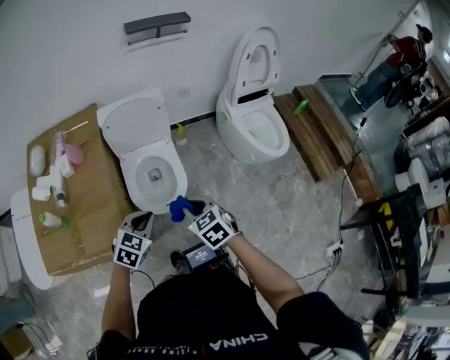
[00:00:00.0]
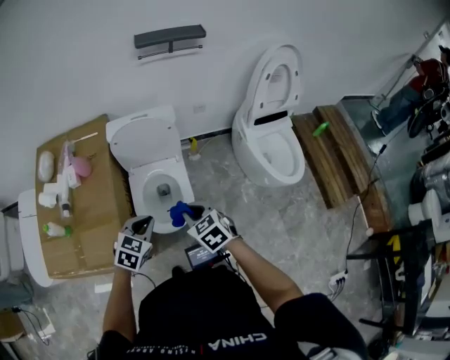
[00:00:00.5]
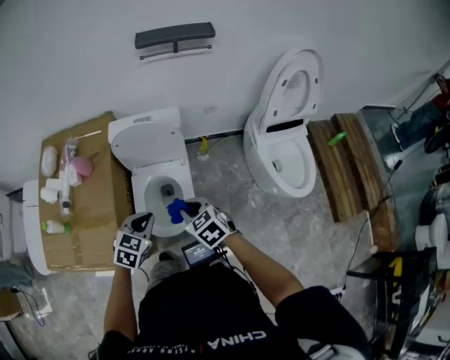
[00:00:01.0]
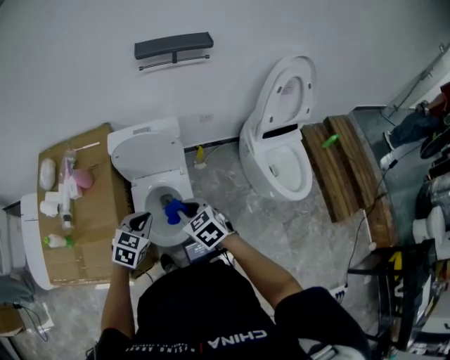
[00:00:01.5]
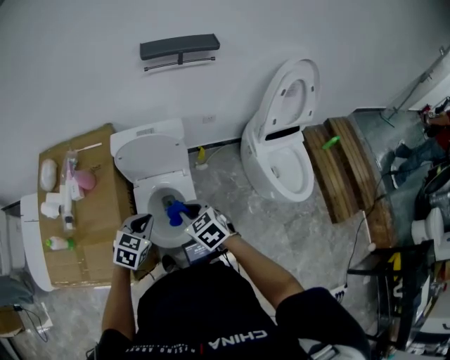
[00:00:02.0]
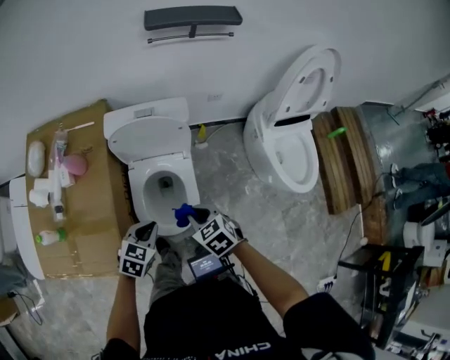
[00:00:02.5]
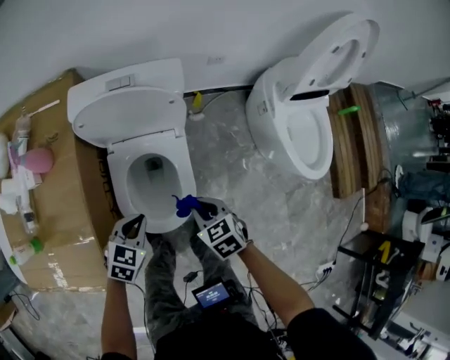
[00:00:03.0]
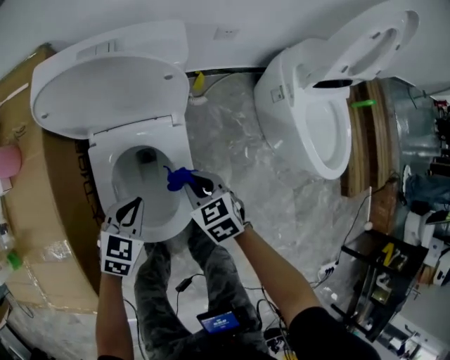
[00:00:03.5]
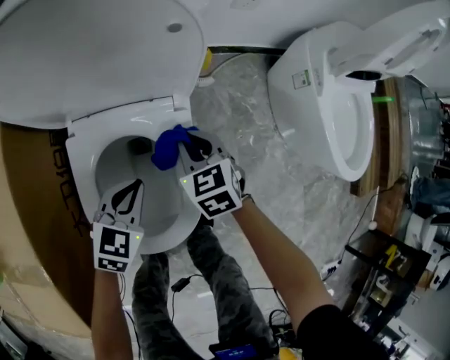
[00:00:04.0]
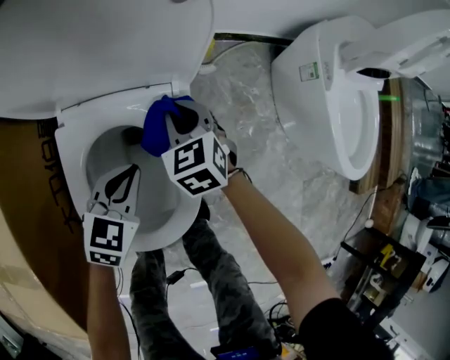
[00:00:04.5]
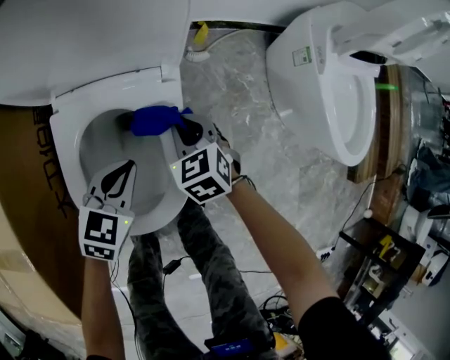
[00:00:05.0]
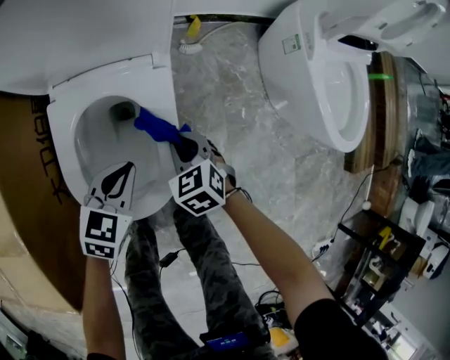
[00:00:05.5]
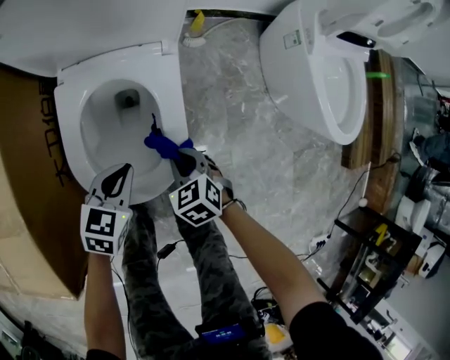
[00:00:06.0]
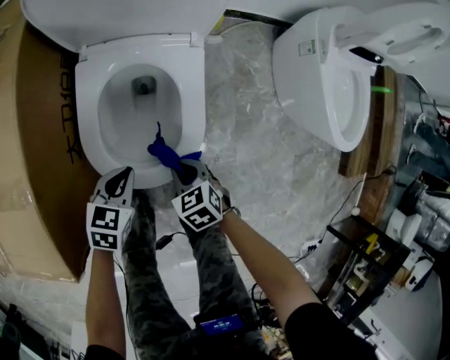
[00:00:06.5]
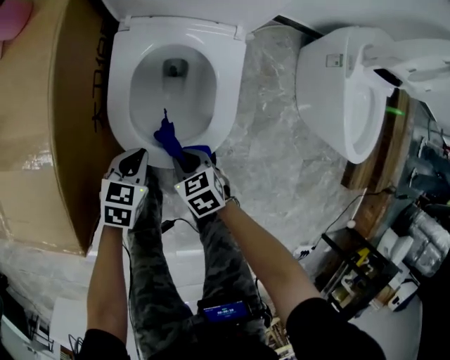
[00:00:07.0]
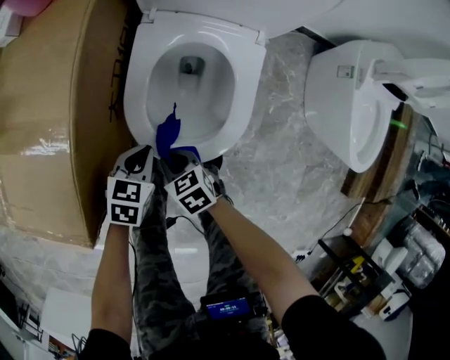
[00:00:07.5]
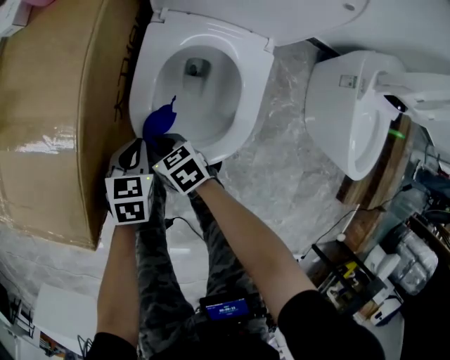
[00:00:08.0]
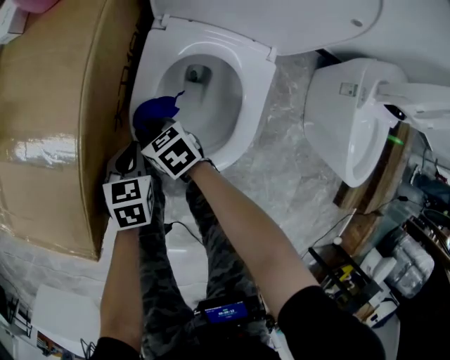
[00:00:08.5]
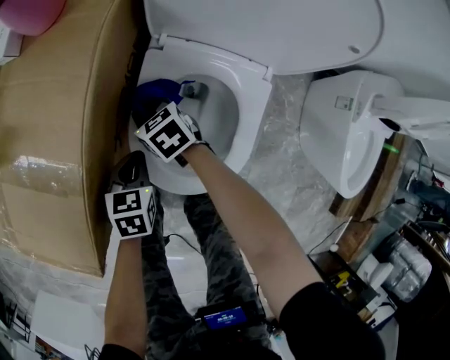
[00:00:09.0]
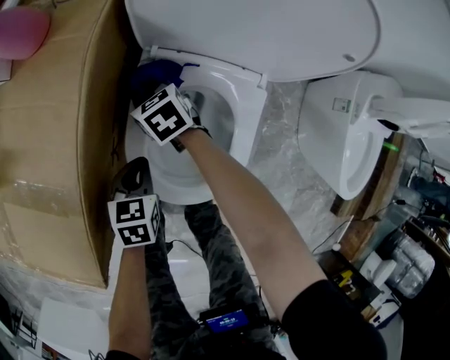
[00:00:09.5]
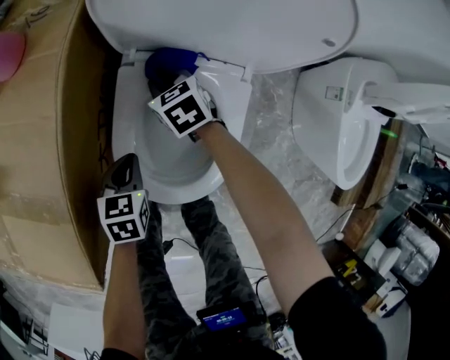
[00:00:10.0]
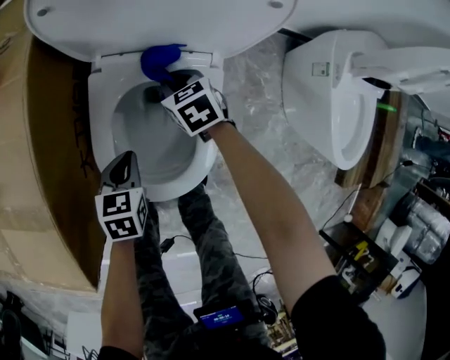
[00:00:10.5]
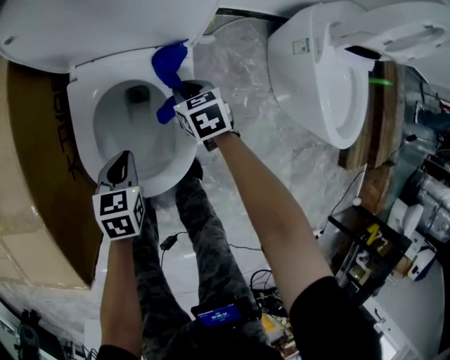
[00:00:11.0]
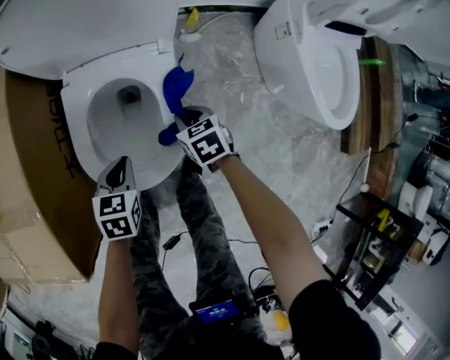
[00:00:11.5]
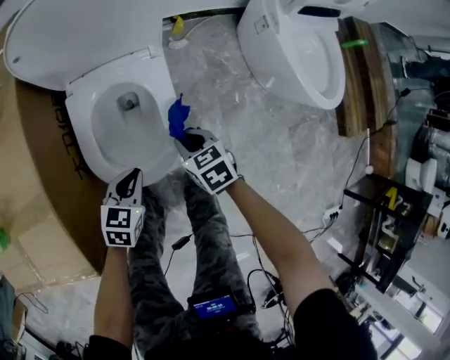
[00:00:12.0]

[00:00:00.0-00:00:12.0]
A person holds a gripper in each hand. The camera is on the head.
00:00:00.0 to 00:00:02.0: Both grippers travel together forward, about 20 cm.
00:00:02.0 to 00:00:04.0: The right gripper moves downward and forward, about 50 cm. The left gripper goes some 40 cm downward.
00:00:04.0 to 00:00:06.0: The right gripper moves backward, roughly 20 cm, while the left gripper goes roughly 10 cm backward.
00:00:06.0 to 00:00:08.0: The right gripper shifts by some 25 cm, and turns by some 30 degrees. Meanwhile the left gripper moves some 15 cm, and swivels about 30 degrees.
00:00:08.0 to 00:00:10.0: The right gripper shifts roughly 30 cm forward and to the right, and turns by some 20 degrees. The left gripper travels forward and to the right by about 10 cm.
00:00:10.0 to 00:00:12.0: The left gripper ends up roughly 15 cm from where it was, and changes its angle by some 40 degrees, while the right gripper ends up about 35 cm from where it was, and swivels about 30 degrees.

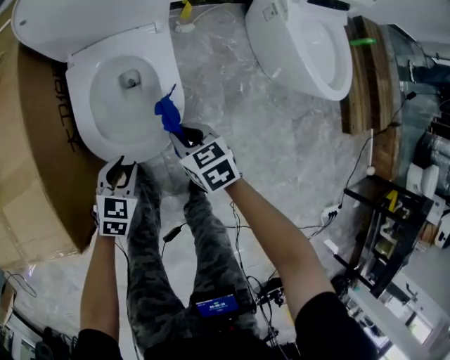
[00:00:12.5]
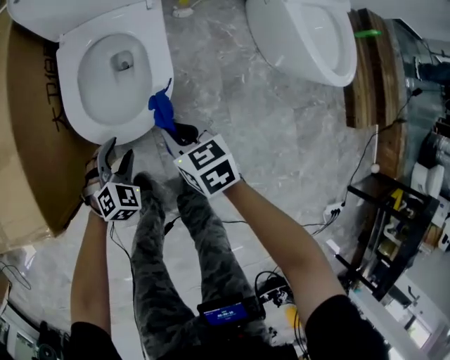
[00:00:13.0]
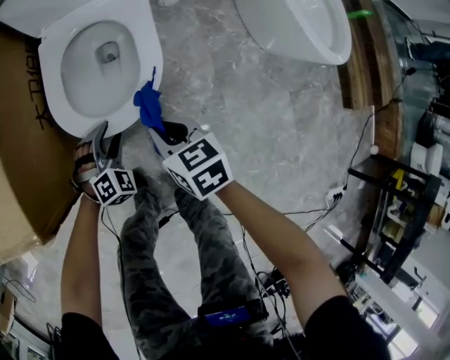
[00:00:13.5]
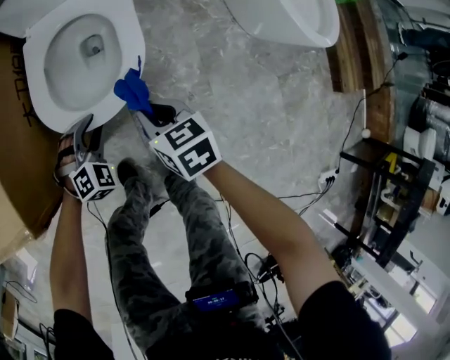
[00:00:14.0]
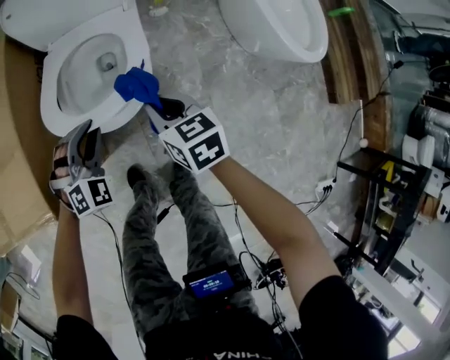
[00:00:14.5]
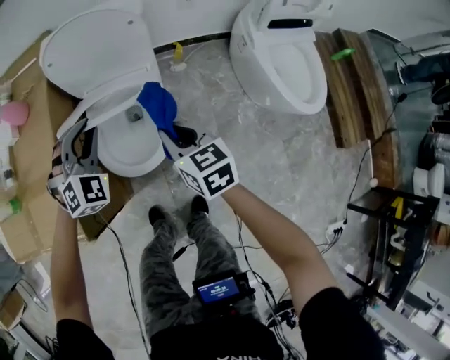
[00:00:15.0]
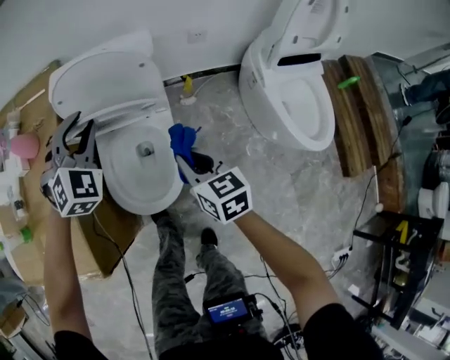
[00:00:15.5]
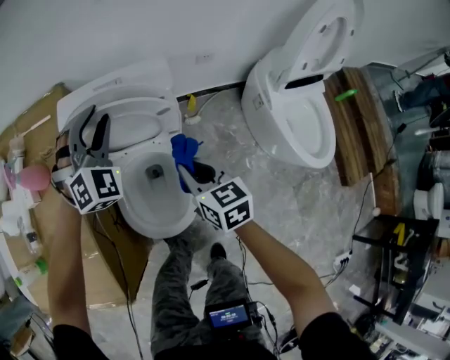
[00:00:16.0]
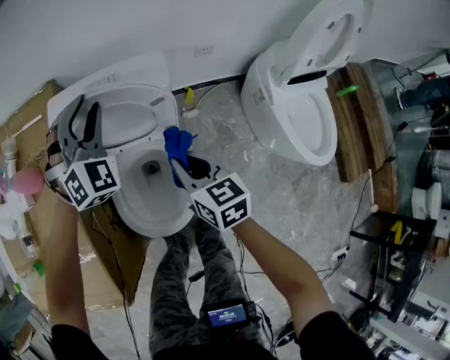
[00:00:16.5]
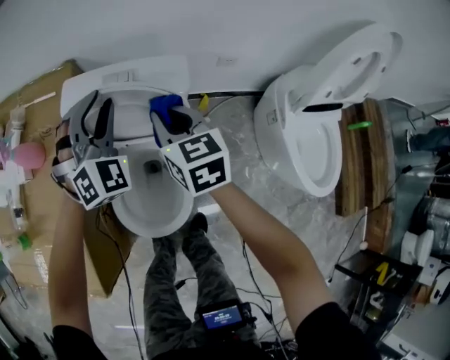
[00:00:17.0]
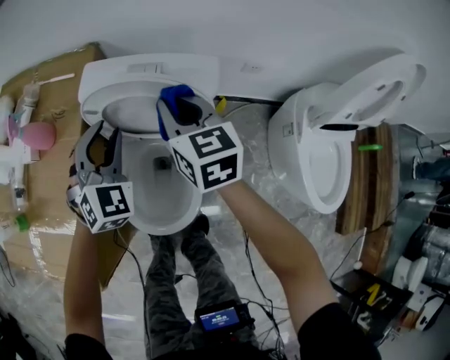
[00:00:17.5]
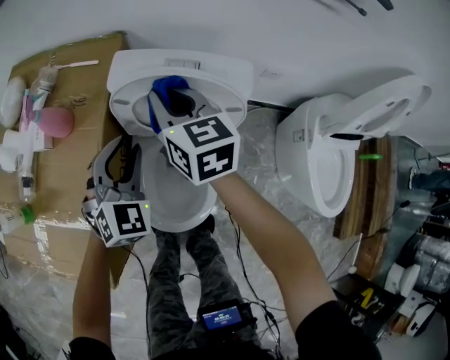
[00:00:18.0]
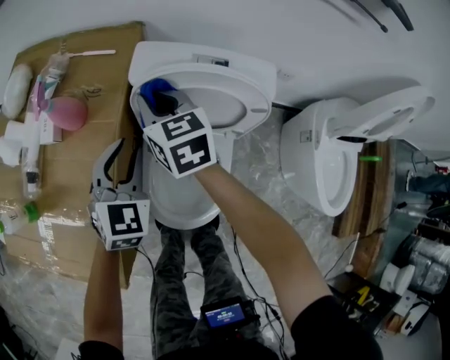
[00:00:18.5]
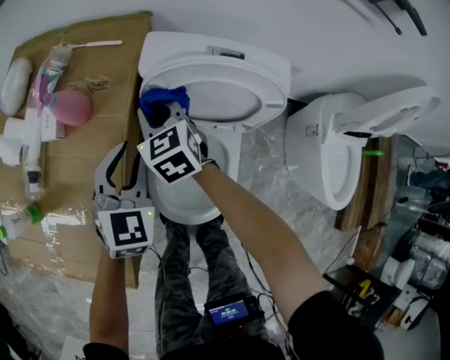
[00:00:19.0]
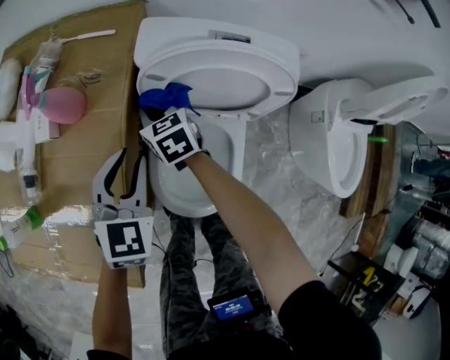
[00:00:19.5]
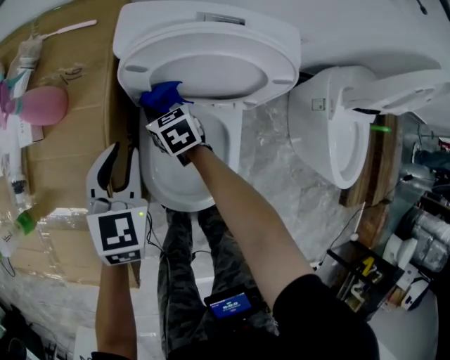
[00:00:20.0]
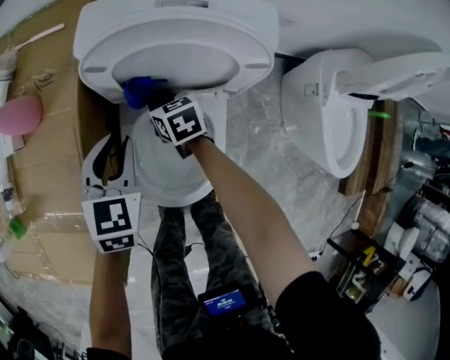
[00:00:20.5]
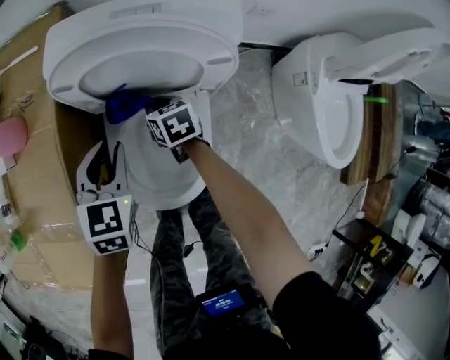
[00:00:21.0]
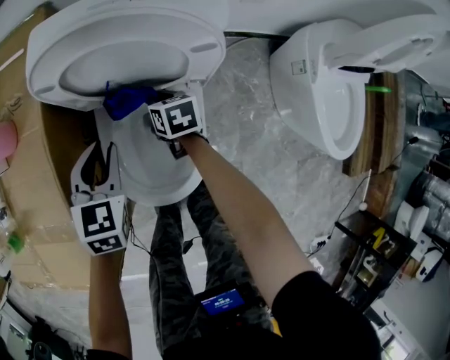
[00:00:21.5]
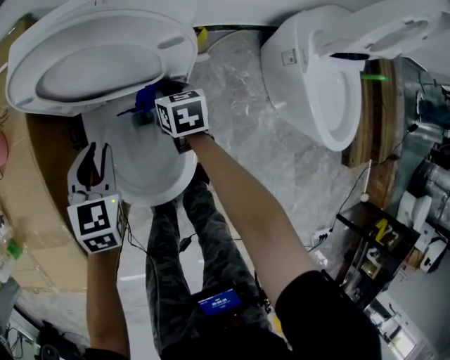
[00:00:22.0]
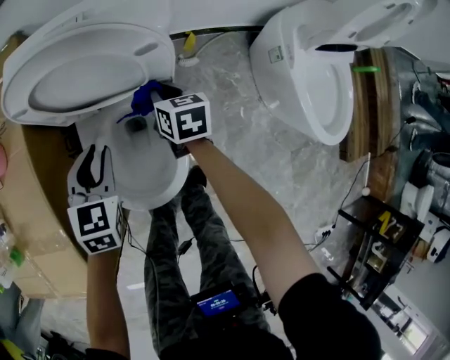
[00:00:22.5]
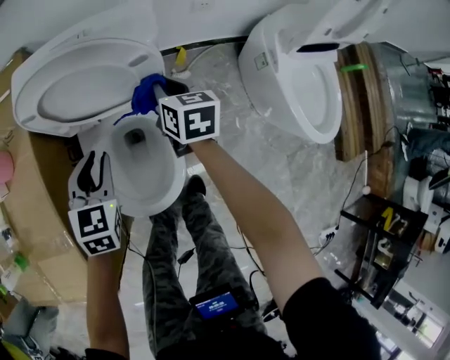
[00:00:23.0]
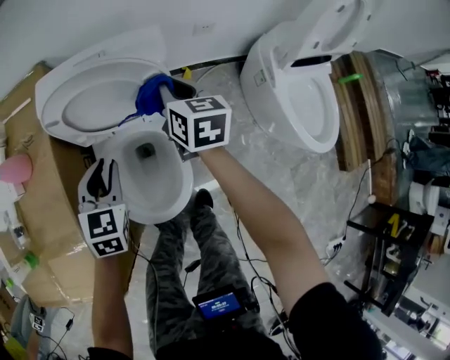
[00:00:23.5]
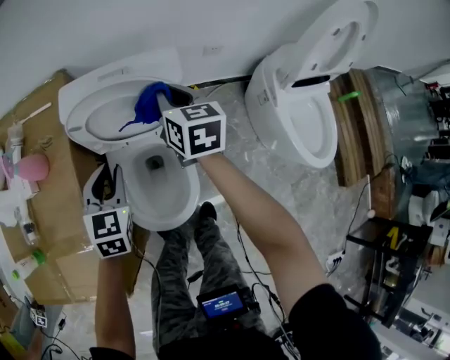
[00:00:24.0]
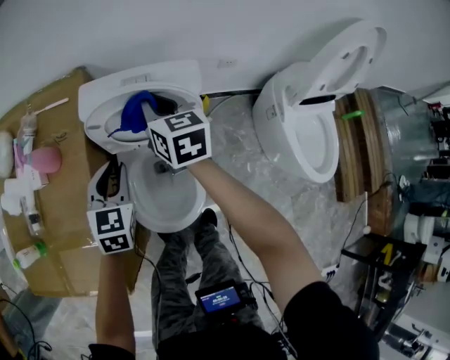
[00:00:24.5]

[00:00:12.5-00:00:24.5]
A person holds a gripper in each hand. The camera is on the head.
00:00:12.5 to 00:00:14.5: The right gripper travels upward and backward by some 10 cm; the left gripper heads upward, covering some 10 cm, rolls clockwise, seen from behind, by some 50 degrees, and opens, then closes again.
00:00:14.5 to 00:00:16.5: The left gripper travels forward and upward by some 50 cm, and changes its angle by about 20 degrees; the right gripper is displaced forward and upward by roughly 30 cm.
00:00:16.5 to 00:00:18.5: The left gripper heads to the left, covering approximately 20 cm, and rolls counterclockwise, seen from behind, by some 40 degrees, while the right gripper moves to the left and forward, about 30 cm, and changes its angle by roughly 20 degrees.
00:00:18.5 to 00:00:20.5: The left gripper is displaced downward by about 10 cm; the right gripper is displaced downward by about 25 cm, and rotates approximately 20 degrees.
00:00:20.5 to 00:00:22.5: The right gripper travels to the right by about 20 cm, and changes its angle by some 20 degrees. The left gripper heads to the right, covering roughly 10 cm.
00:00:22.5 to 00:00:24.5: The left gripper heads upward, covering about 15 cm. Meanwhile the right gripper moves upward, about 30 cm, and changes its angle by roughly 20 degrees.

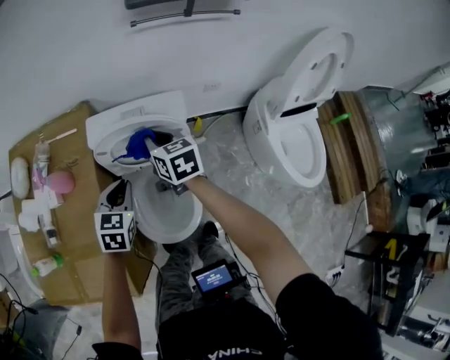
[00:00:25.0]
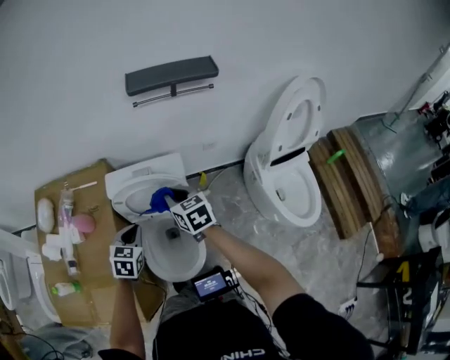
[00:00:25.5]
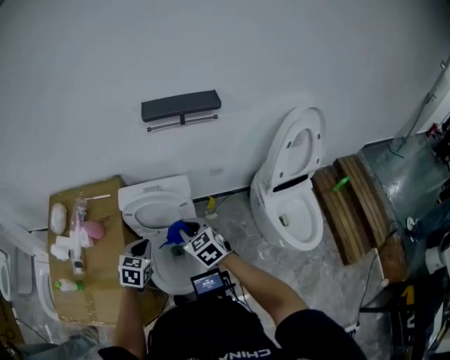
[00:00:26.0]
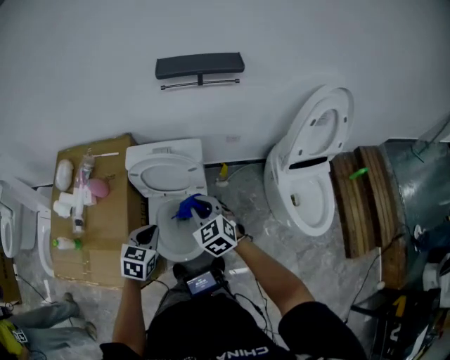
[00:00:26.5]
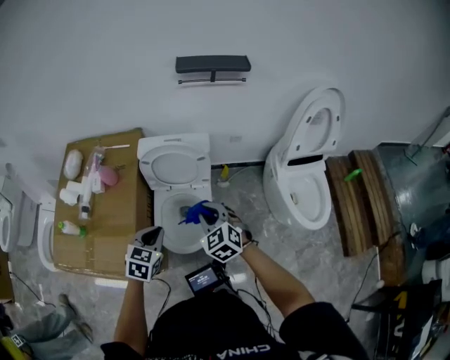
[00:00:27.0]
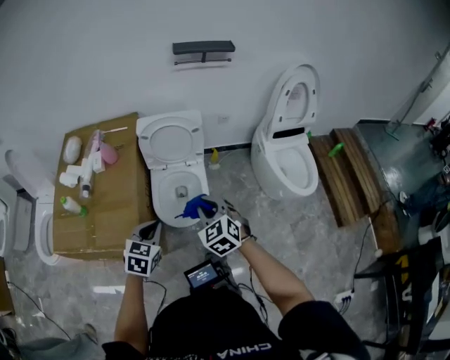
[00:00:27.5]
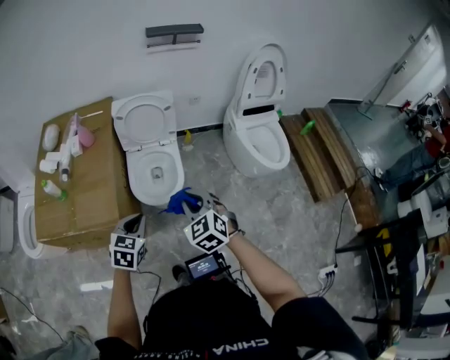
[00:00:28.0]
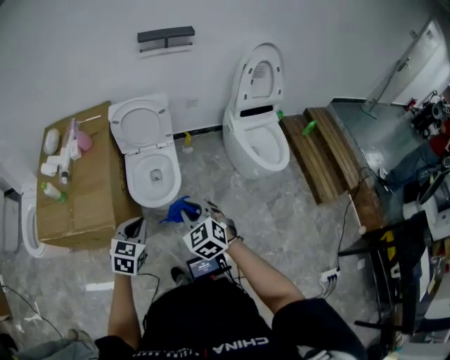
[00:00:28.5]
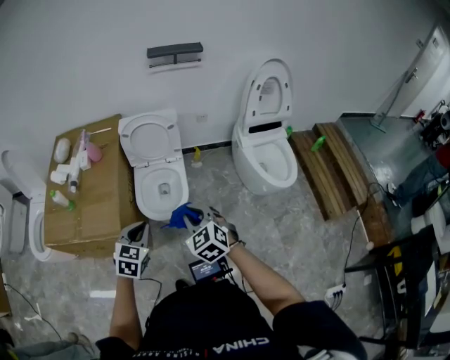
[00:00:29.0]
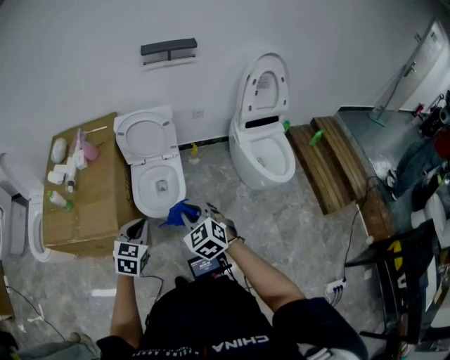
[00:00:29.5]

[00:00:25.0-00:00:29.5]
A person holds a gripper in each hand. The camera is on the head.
00:00:25.0 to 00:00:27.0: The left gripper heads backward and upward, covering about 25 cm, while the right gripper heads backward, covering some 30 cm, and rotates around the line of its fingers by about 40 degrees, counterclockwise from behind.
00:00:27.0 to 00:00:29.5: Both grippers travel together backward, approximately 25 cm.
